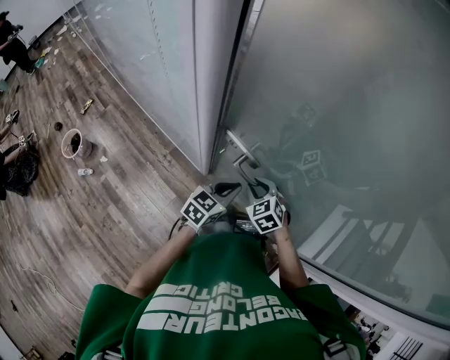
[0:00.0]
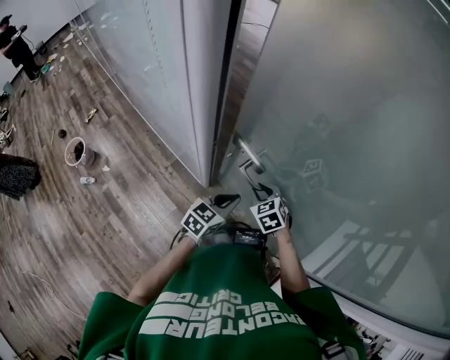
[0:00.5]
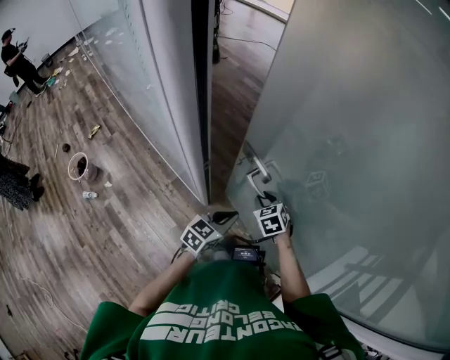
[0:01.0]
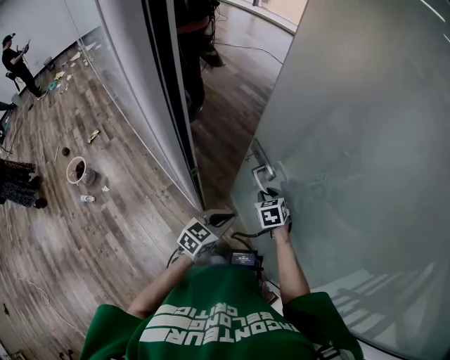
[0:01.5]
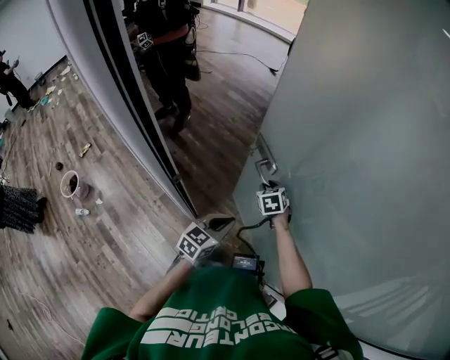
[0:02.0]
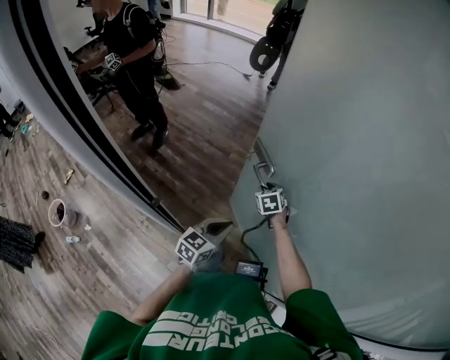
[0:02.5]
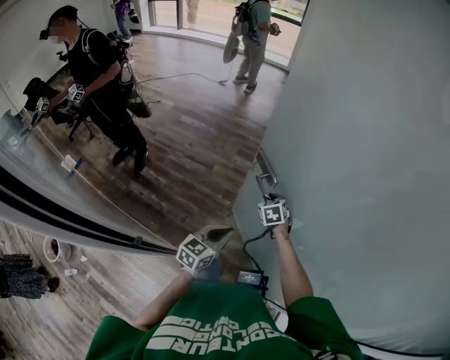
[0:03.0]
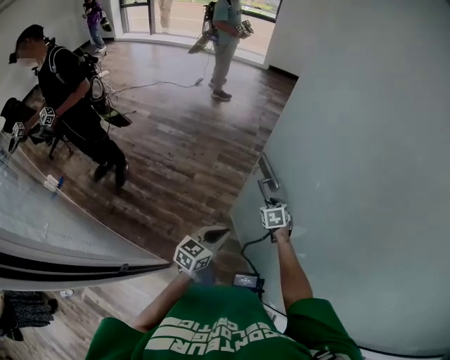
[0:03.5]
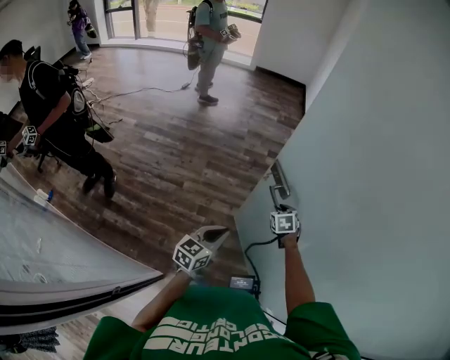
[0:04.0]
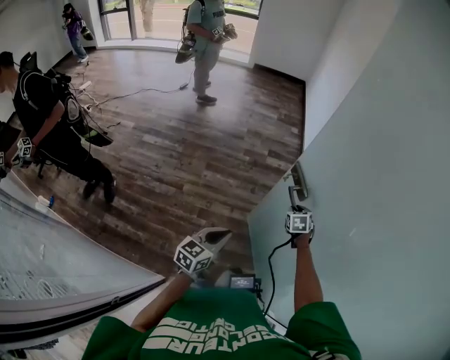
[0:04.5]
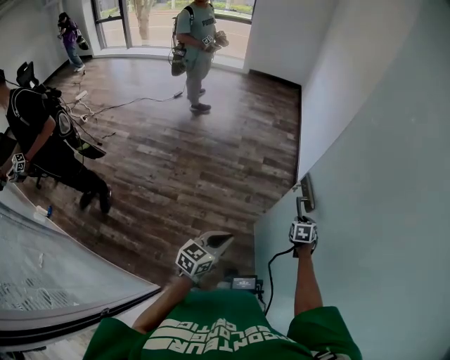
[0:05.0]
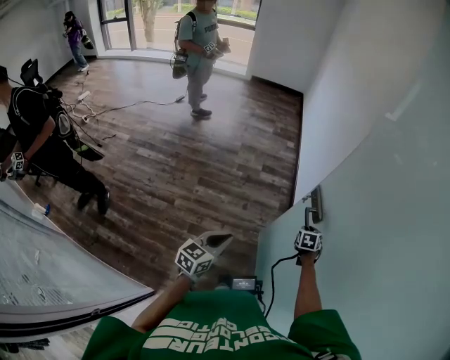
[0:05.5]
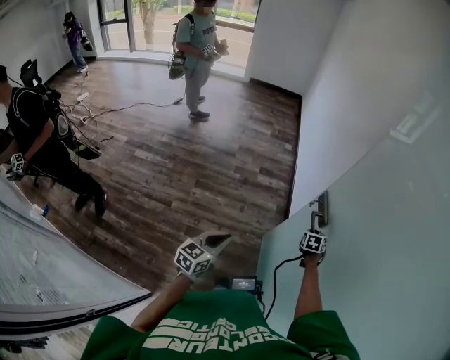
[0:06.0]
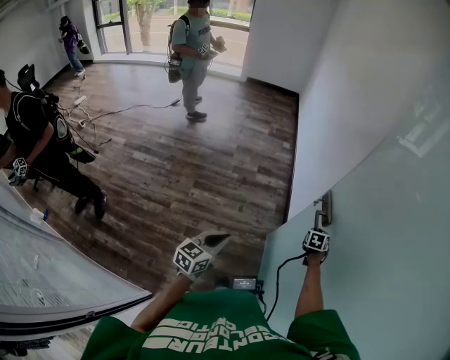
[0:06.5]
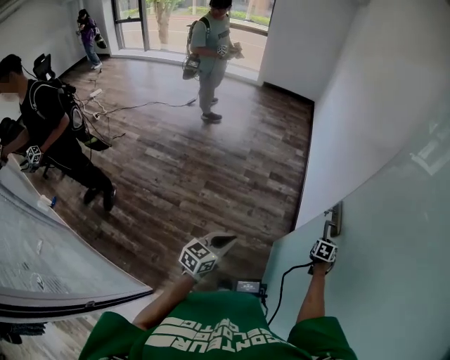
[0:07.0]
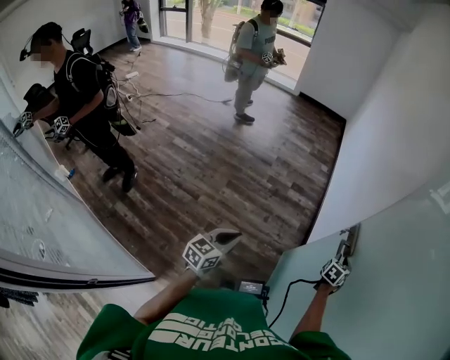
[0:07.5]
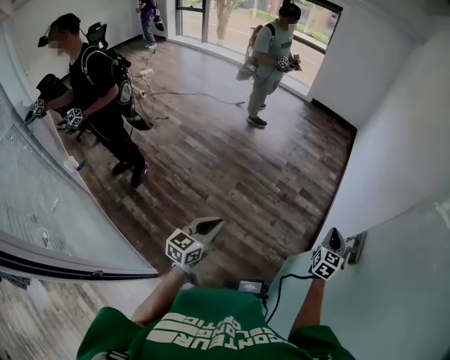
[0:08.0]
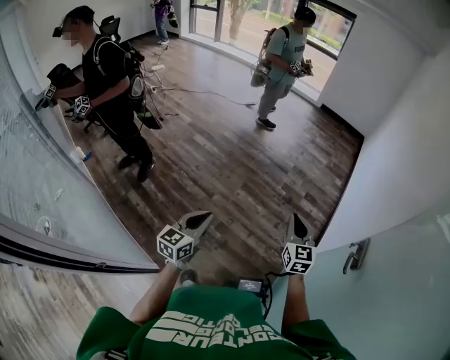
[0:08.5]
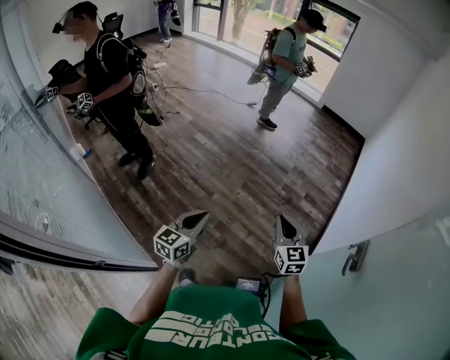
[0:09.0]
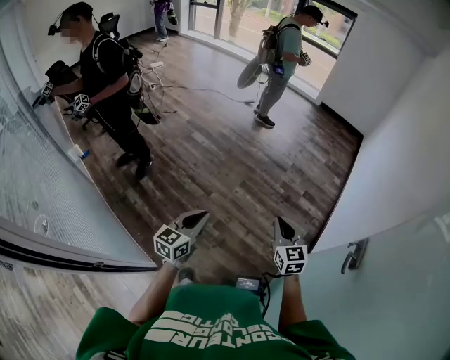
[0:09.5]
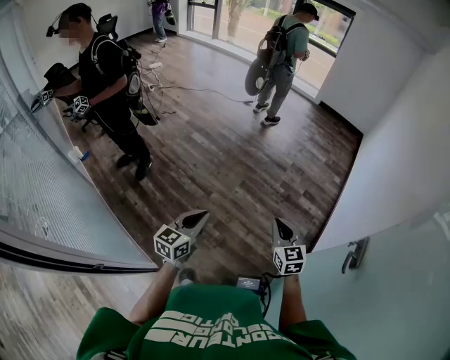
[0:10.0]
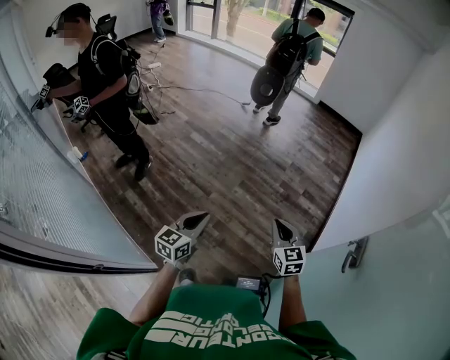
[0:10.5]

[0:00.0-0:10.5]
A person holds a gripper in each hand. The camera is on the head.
0:00.0 to 0:02.0: The right gripper moves forward and to the right, about 25 cm, and changes its angle by some 20 degrees. The left gripper travels to the right and forward by some 10 cm.
0:02.0 to 0:04.0: The right gripper changes place by some 40 cm, and swivels some 30 degrees; the left gripper ends up roughly 30 cm from where it was, and turns by approximately 20 degrees.
0:04.0 to 0:06.5: The right gripper moves to the right and forward, roughly 35 cm, and rotates roughly 30 degrees; the left gripper heads forward, covering approximately 15 cm.
0:06.5 to 0:08.5: The left gripper changes place by some 25 cm, and swivels approximately 40 degrees. The right gripper changes place by approximately 40 cm, tips its fingers upward by approximately 40 degrees, and closes.
0:08.5 to 0:10.5: The right gripper moves approximately 5 cm.

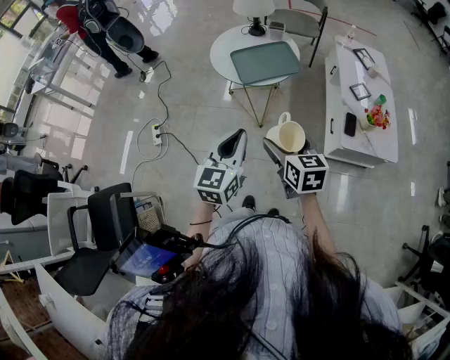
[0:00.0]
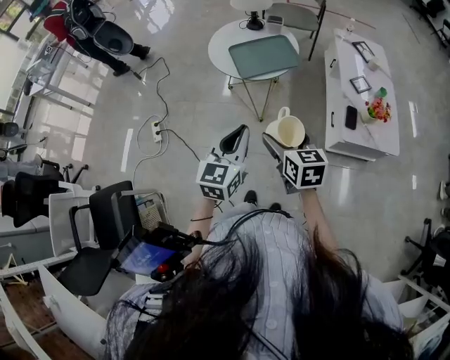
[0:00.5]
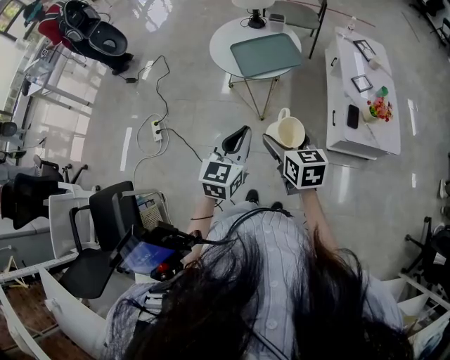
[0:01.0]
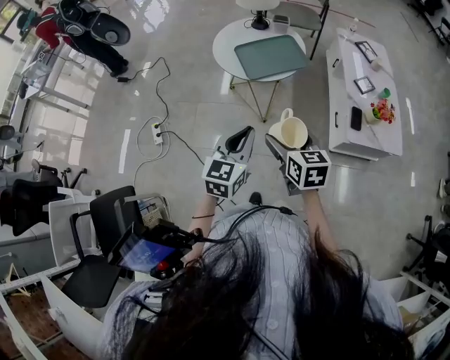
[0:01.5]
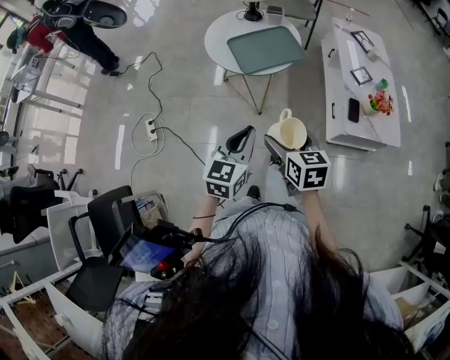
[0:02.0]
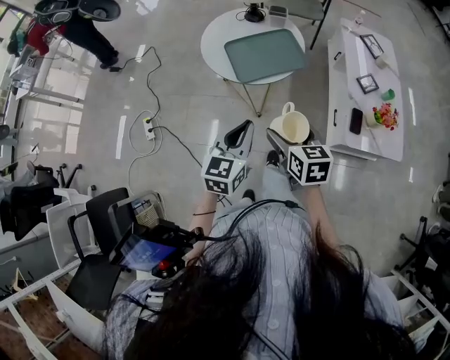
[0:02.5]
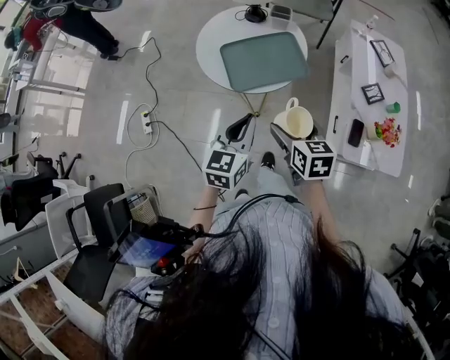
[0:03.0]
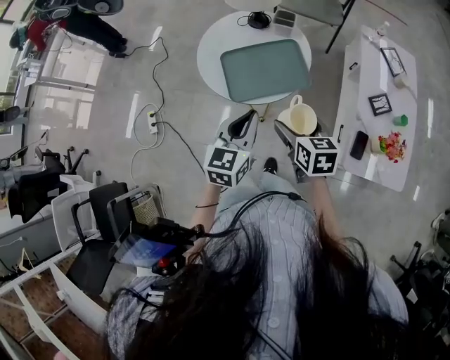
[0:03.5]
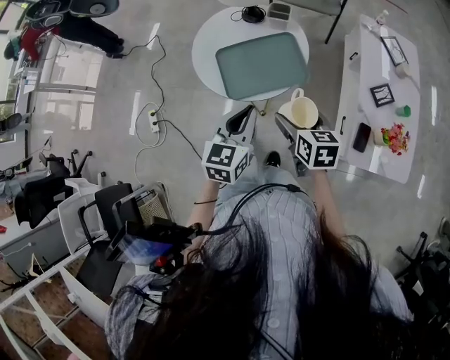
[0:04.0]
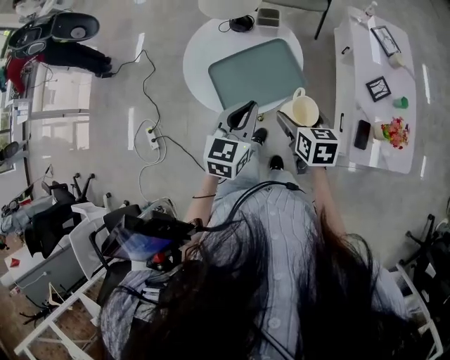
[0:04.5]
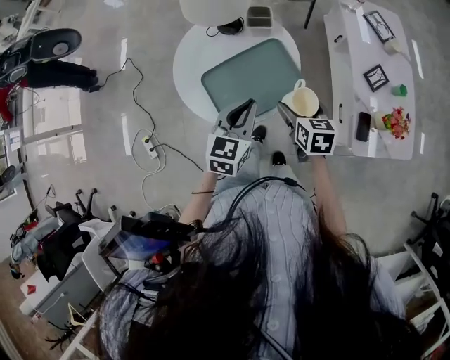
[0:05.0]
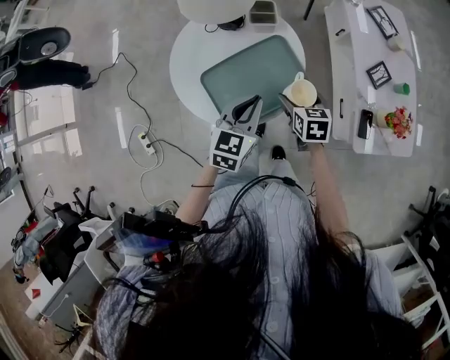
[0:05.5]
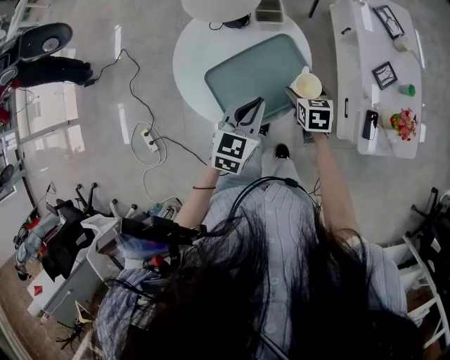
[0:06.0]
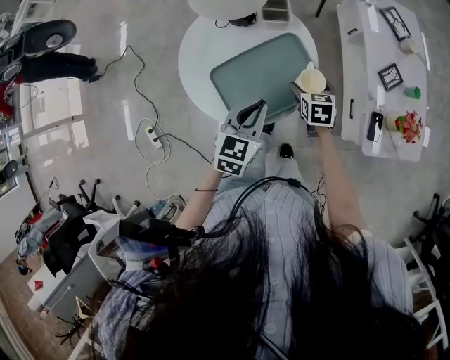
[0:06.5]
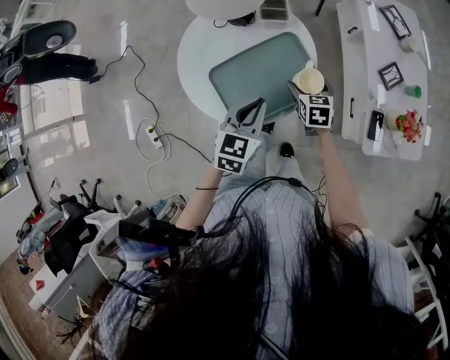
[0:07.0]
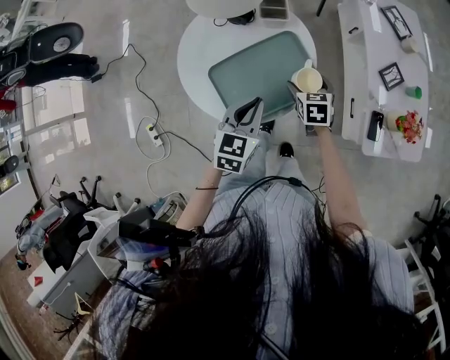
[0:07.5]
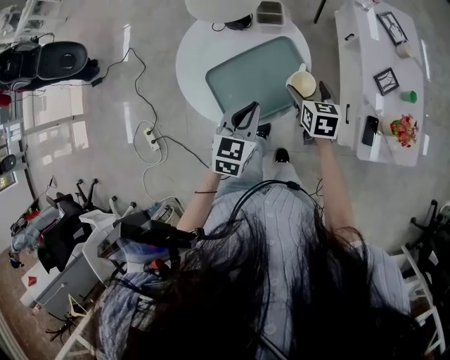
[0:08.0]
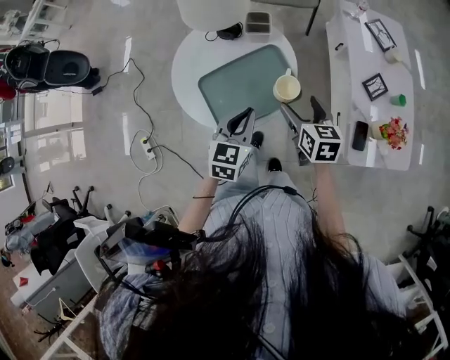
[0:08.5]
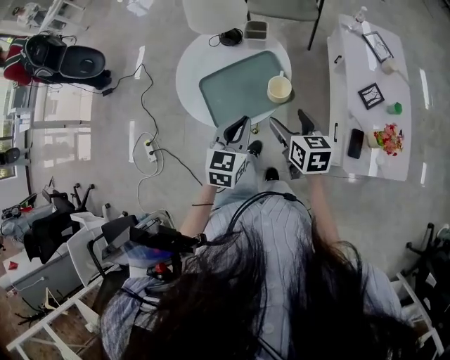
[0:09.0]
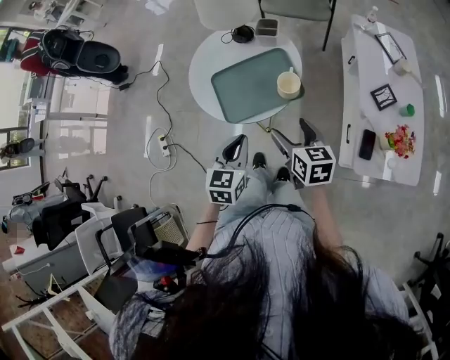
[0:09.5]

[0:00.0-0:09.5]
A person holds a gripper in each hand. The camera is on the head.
0:00.0 to 0:02.0: The left gripper goes approximately 5 cm downward. Meanwhile the right gripper shifts by about 5 cm.
0:02.0 to 0:04.0: The grippers both shift forward and to the right by approximately 30 cm.
0:04.0 to 0:05.5: The grippers both shift forward and downward by some 20 cm. The left gripper rotates approximately 20 degrees.
0:05.5 to 0:07.5: The right gripper moves about 5 cm.
0:07.5 to 0:09.5: The left gripper heads backward, covering roughly 15 cm; the right gripper heads backward and upward, covering some 20 cm, and changes its angle by about 30 degrees.

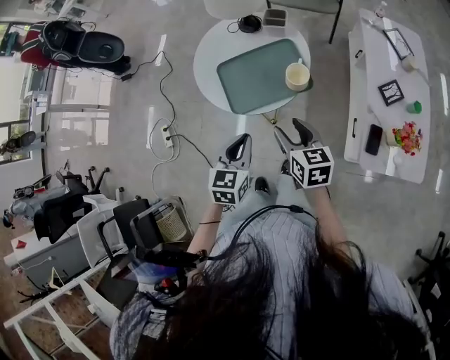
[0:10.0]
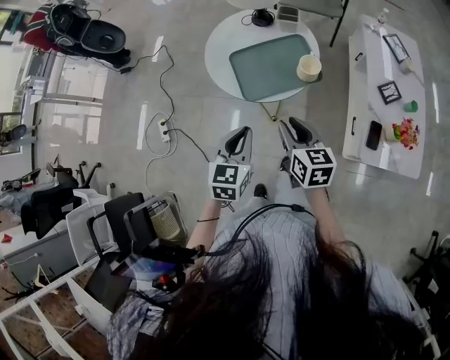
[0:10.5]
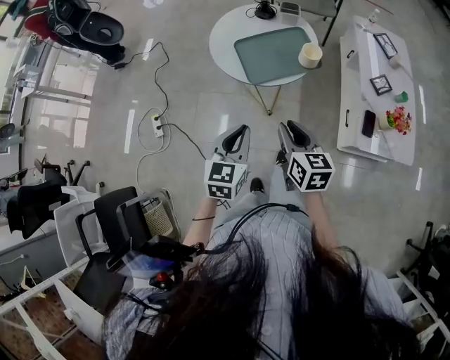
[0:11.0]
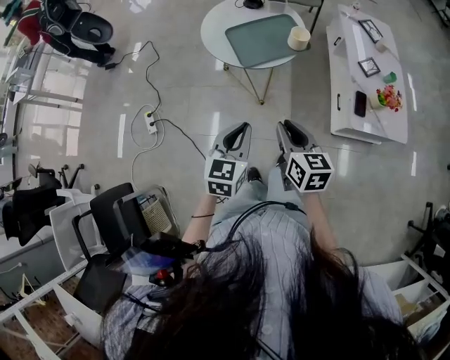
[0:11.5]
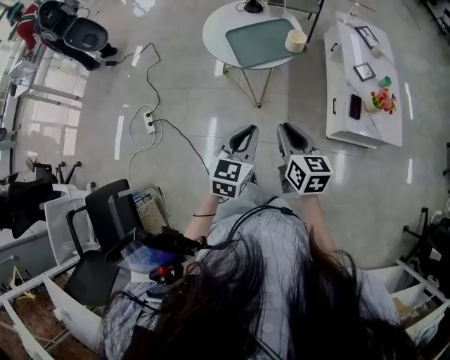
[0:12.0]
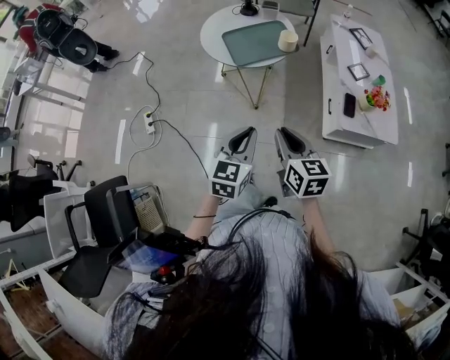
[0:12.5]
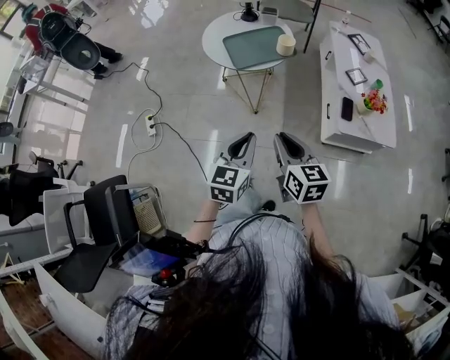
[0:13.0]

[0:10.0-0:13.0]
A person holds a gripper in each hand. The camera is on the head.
0:10.0 to 0:11.5: The two grippers go approximately 25 cm backward and to the left. The right gripper closes up.
0:11.5 to 0:13.0: The right gripper goes about 10 cm backward; the left gripper goes about 10 cm backward and to the right.

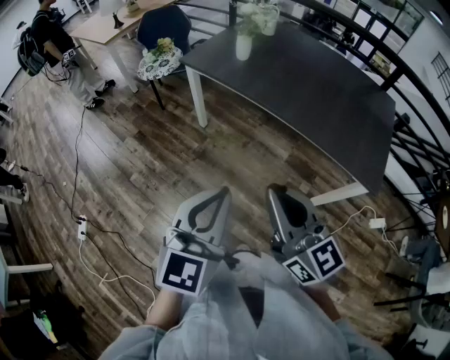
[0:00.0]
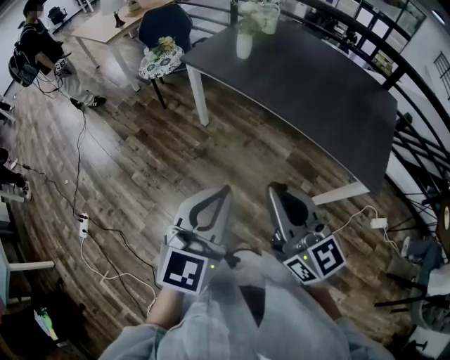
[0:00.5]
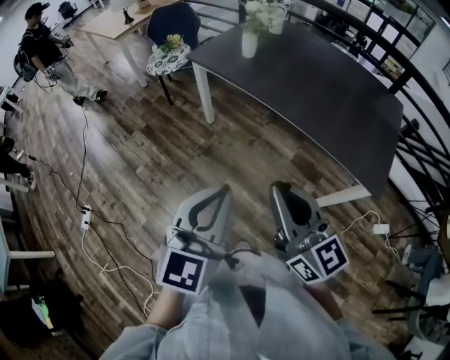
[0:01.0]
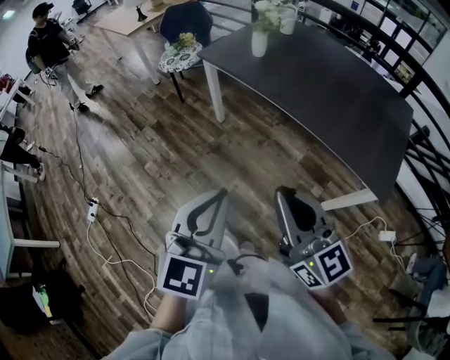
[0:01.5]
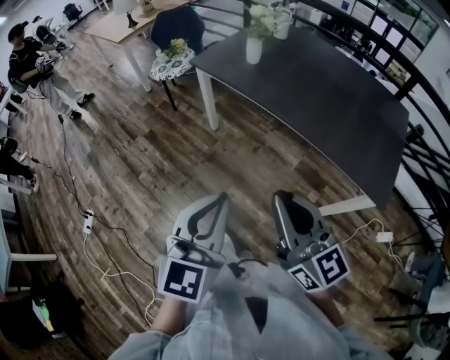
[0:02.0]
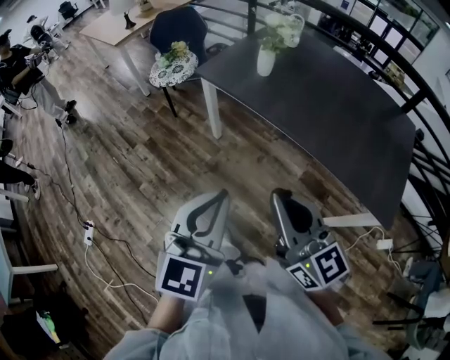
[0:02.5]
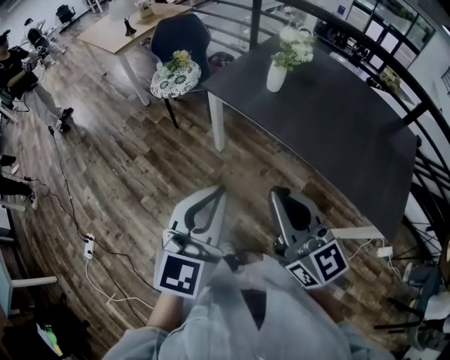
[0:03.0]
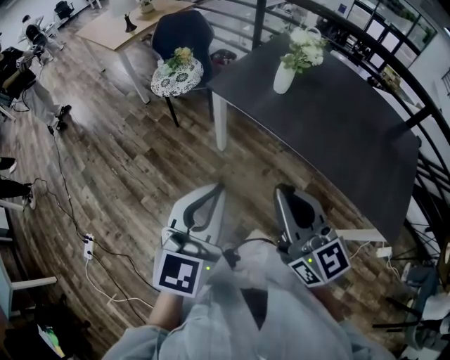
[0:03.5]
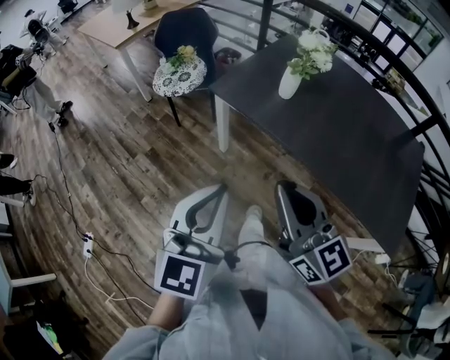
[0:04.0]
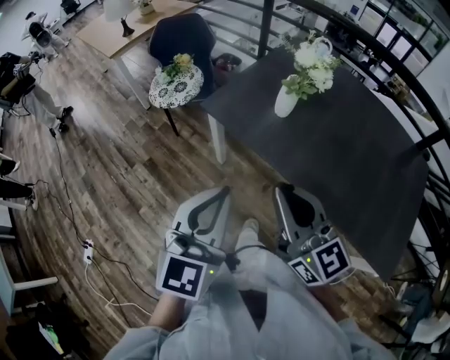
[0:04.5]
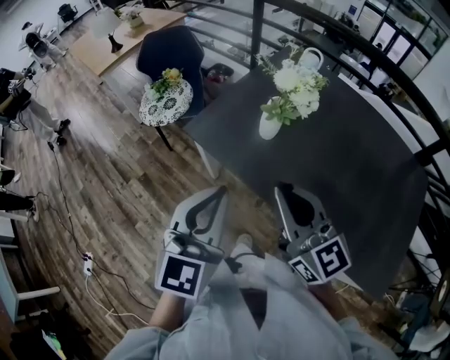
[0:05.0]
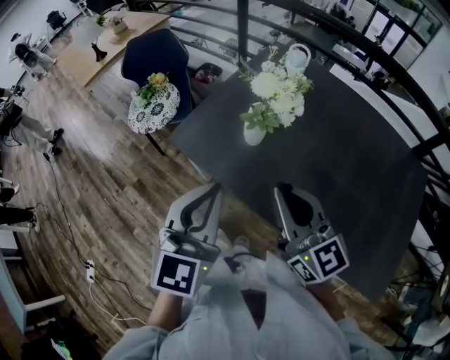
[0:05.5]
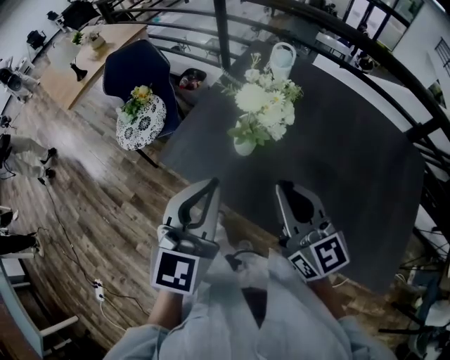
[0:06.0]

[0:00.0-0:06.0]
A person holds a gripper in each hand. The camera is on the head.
0:00.0 to 0:02.0: The grippers move only a little.
0:02.0 to 0:04.0: The grippers both shift forward and to the left by approximately 30 cm.
0:04.0 to 0:06.0: Both grippers travel together forward and to the right, approximately 35 cm.
